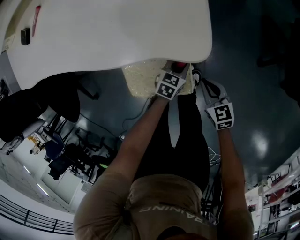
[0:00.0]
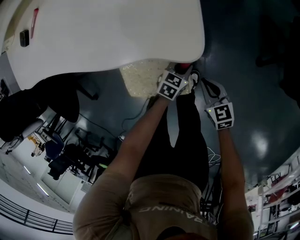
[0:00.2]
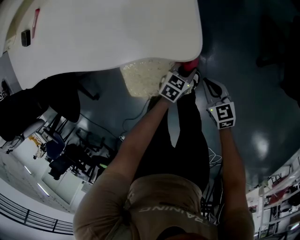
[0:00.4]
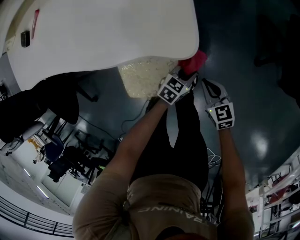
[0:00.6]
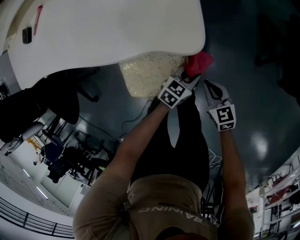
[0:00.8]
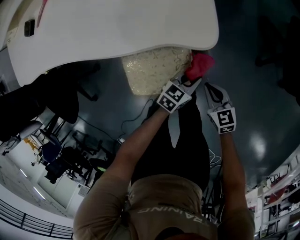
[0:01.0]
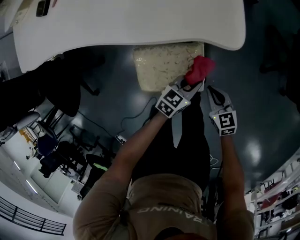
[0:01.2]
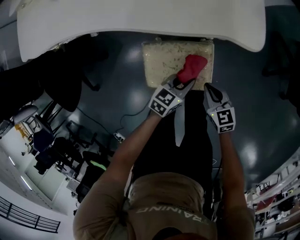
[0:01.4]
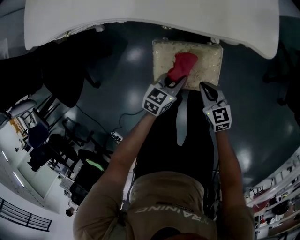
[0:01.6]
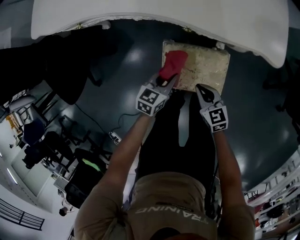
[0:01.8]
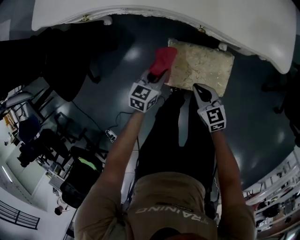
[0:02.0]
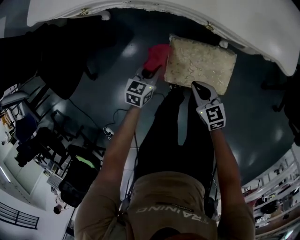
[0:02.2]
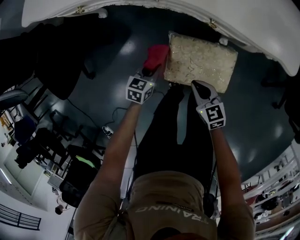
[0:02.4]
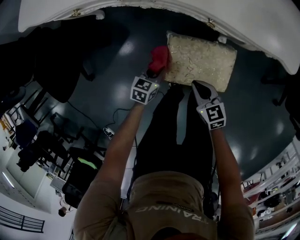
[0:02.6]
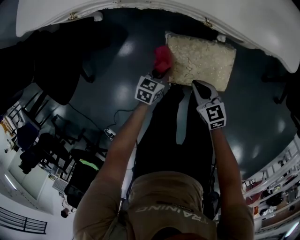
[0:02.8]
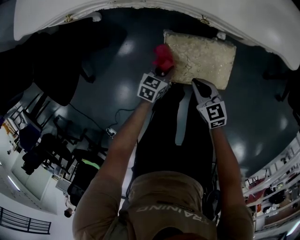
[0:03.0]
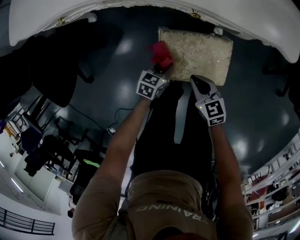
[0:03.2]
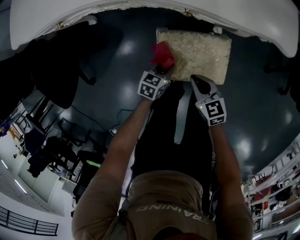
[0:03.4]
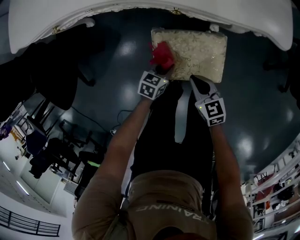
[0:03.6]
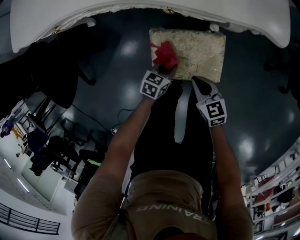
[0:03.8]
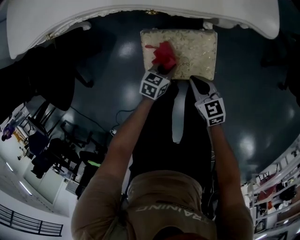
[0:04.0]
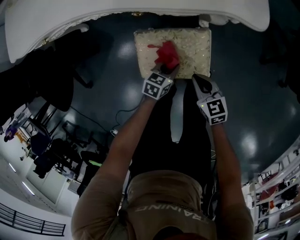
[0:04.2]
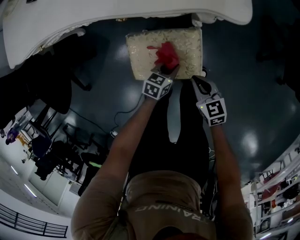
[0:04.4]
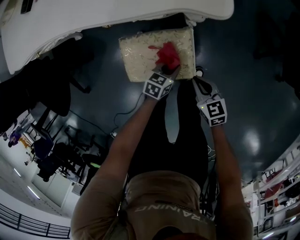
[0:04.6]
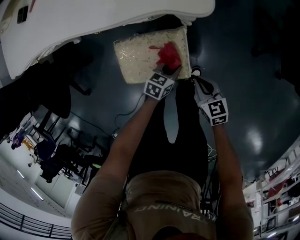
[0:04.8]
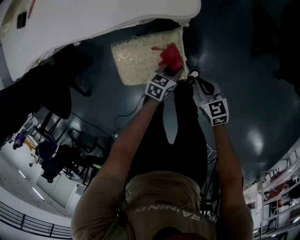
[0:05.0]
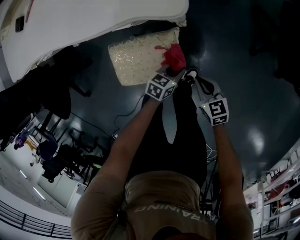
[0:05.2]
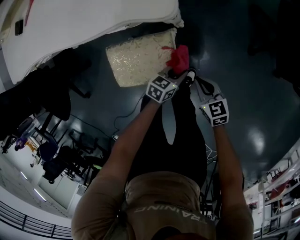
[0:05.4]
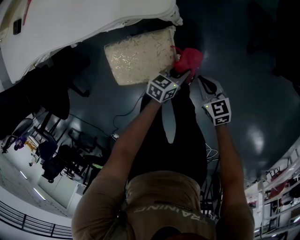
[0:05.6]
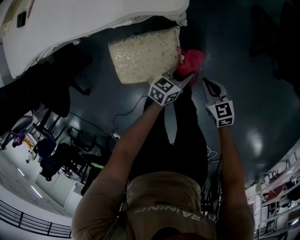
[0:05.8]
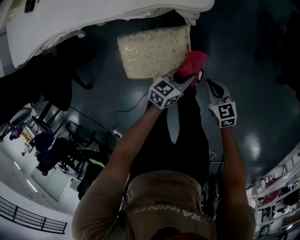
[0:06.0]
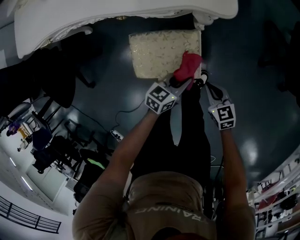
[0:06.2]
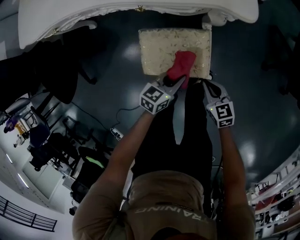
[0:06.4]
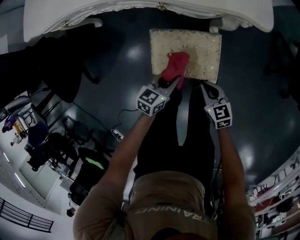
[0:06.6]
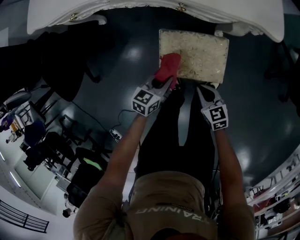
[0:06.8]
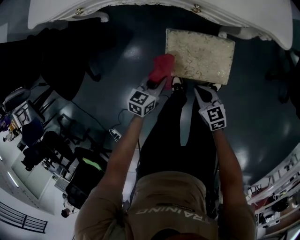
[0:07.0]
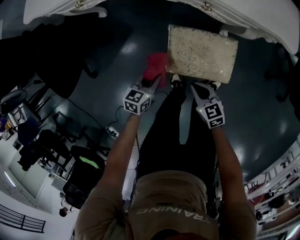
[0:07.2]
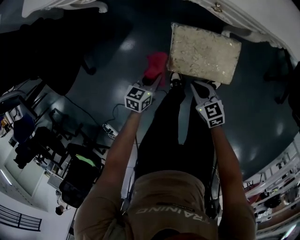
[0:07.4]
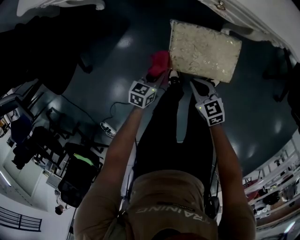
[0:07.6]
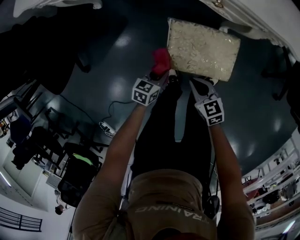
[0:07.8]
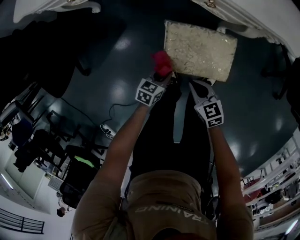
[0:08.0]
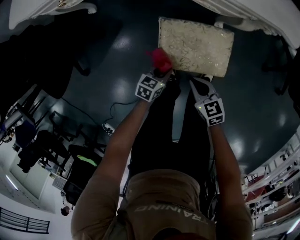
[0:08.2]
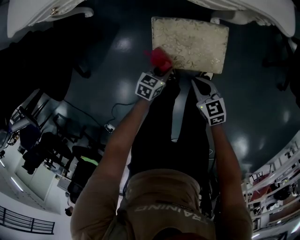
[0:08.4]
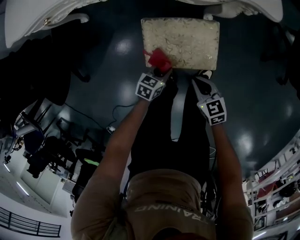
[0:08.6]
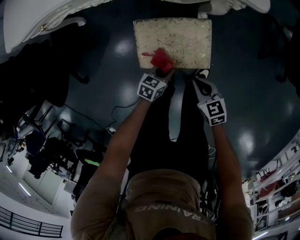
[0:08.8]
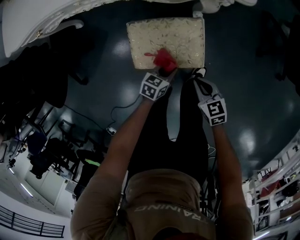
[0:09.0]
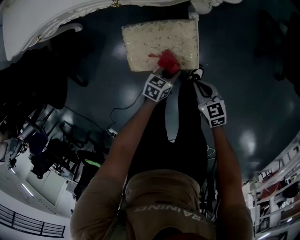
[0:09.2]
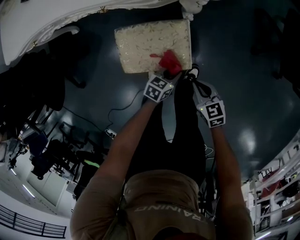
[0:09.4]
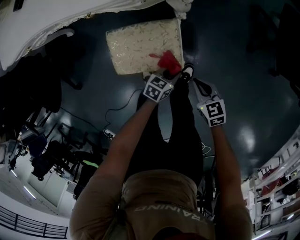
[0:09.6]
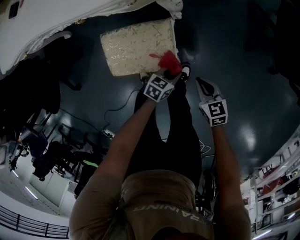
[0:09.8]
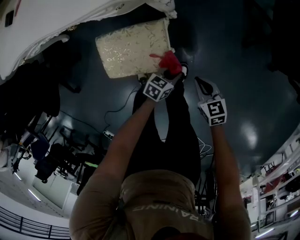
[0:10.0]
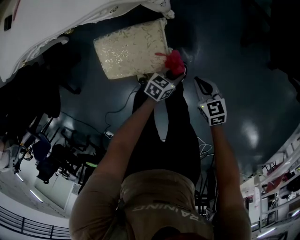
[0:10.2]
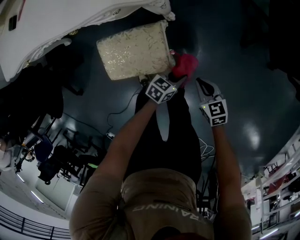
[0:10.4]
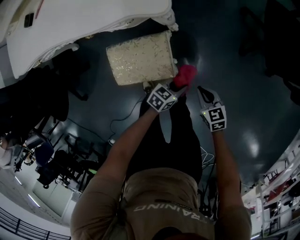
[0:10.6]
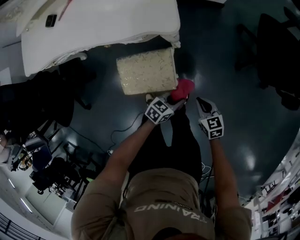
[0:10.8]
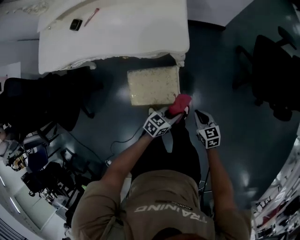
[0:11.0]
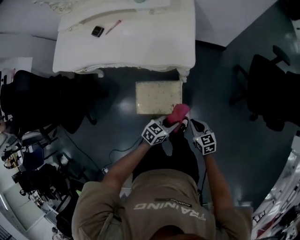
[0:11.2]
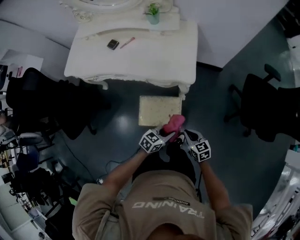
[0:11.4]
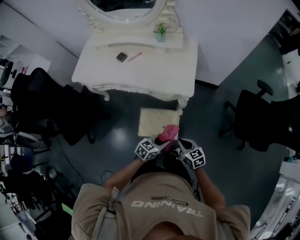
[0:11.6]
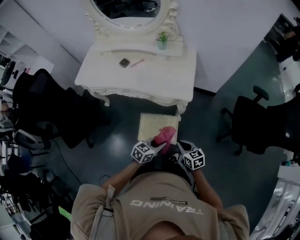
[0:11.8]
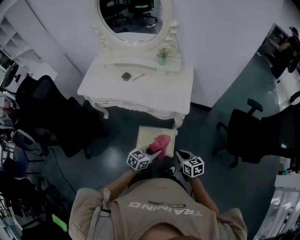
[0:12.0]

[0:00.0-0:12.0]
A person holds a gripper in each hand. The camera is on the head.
0:00.0 to 0:01.6: The right gripper shifts about 20 cm to the left and backward, while the left gripper is displaced to the left, upward and backward by roughly 25 cm.
0:01.6 to 0:03.0: The right gripper travels to the left by about 10 cm; the left gripper moves to the left and downward, roughly 15 cm.
0:03.0 to 0:04.4: Both grippers move to the right, some 20 cm.
0:04.4 to 0:06.0: The right gripper travels to the right by approximately 15 cm, while the left gripper travels to the right and upward by about 15 cm.
0:06.0 to 0:07.6: Both grippers travel together to the left, roughly 40 cm. The left gripper changes its angle by approximately 20 degrees.
0:07.6 to 0:09.0: The grippers both shift to the right by about 25 cm.
0:09.0 to 0:10.4: Both grippers travel together to the right, approximately 20 cm.
0:10.4 to 0:12.0: The grippers both shift upward by approximately 50 cm. The left gripper turns by approximately 30 degrees.

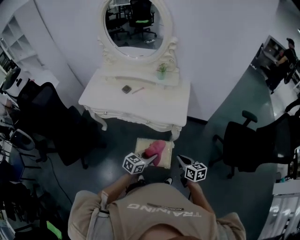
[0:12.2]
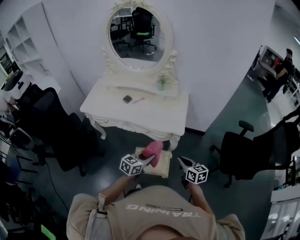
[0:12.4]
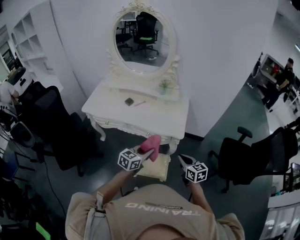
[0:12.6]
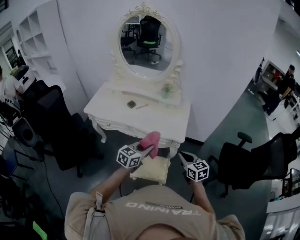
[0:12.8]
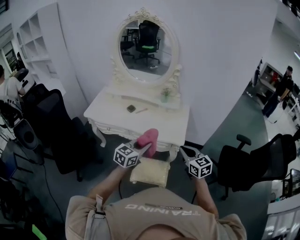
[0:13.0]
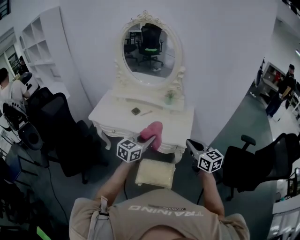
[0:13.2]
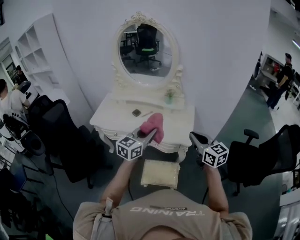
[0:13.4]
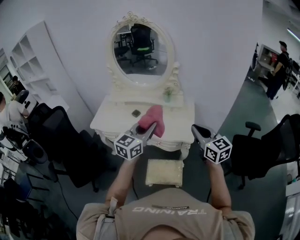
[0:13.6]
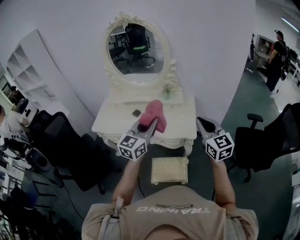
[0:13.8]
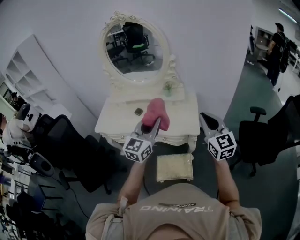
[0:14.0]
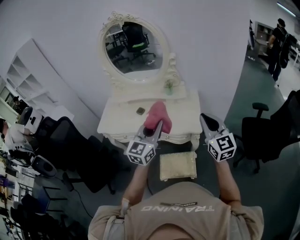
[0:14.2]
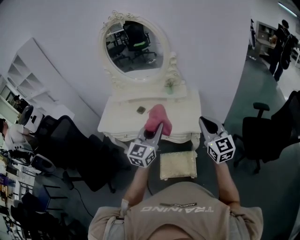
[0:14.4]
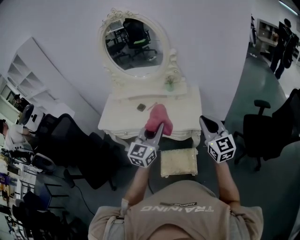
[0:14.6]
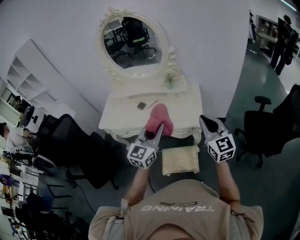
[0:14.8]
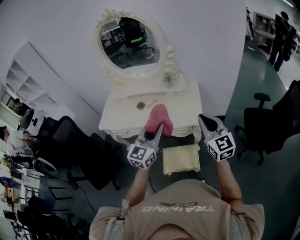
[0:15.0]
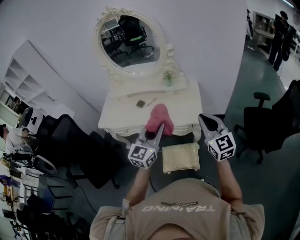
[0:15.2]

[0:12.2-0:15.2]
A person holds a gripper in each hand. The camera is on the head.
0:12.2 to 0:13.8: The two grippers go approximately 35 cm upward. The left gripper turns by roughly 40 degrees. The right gripper swivels approximately 40 degrees.
0:13.8 to 0:15.2: The left gripper is displaced downward by roughly 5 cm. Meanwhile the right gripper ends up roughly 5 cm from where it was.

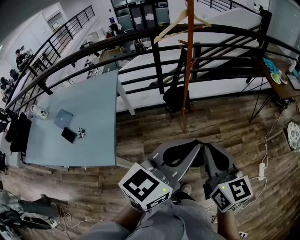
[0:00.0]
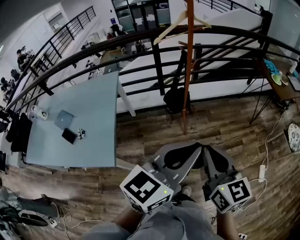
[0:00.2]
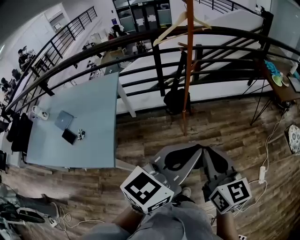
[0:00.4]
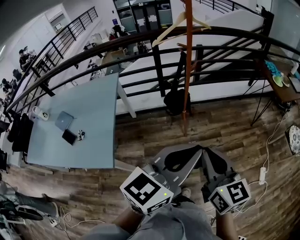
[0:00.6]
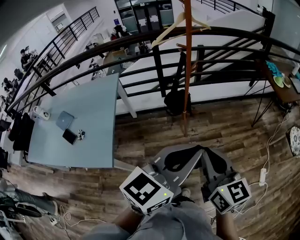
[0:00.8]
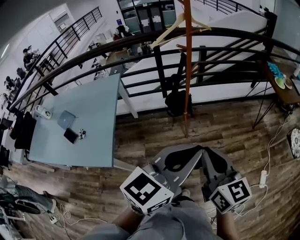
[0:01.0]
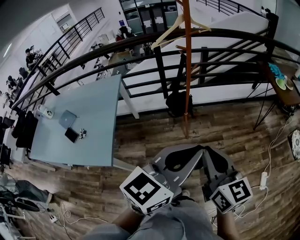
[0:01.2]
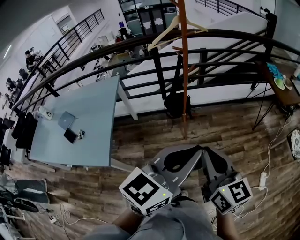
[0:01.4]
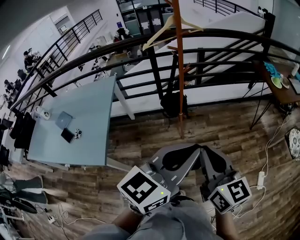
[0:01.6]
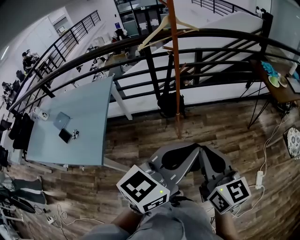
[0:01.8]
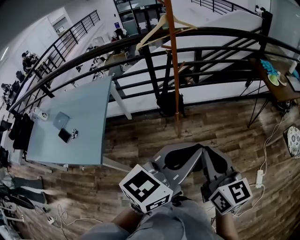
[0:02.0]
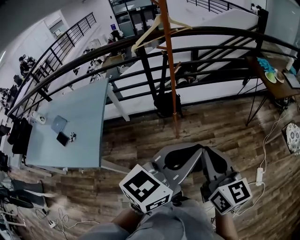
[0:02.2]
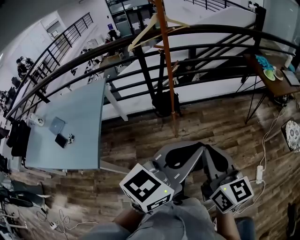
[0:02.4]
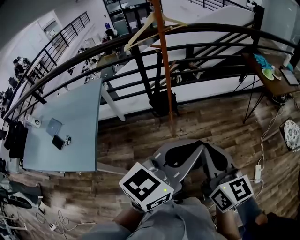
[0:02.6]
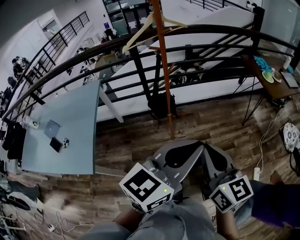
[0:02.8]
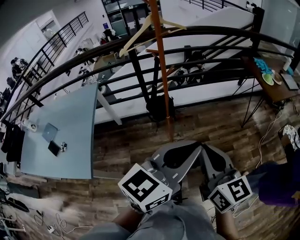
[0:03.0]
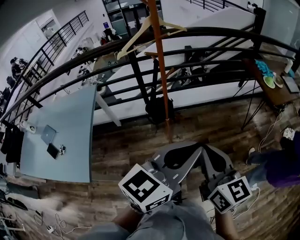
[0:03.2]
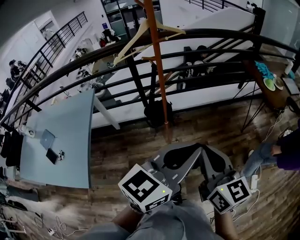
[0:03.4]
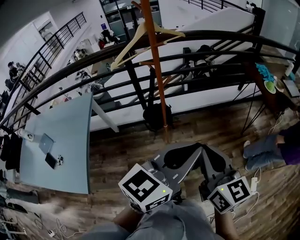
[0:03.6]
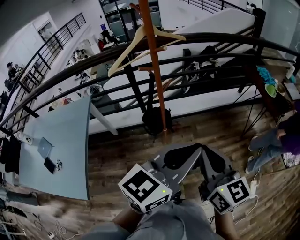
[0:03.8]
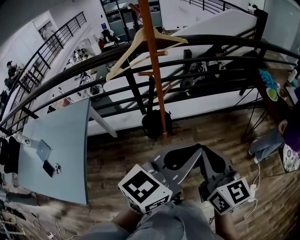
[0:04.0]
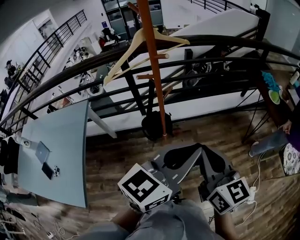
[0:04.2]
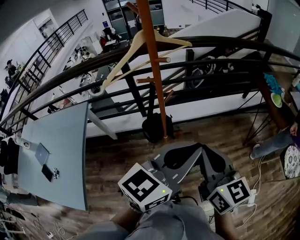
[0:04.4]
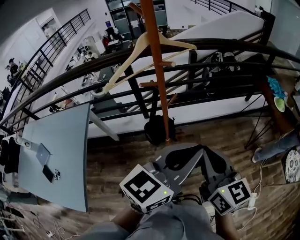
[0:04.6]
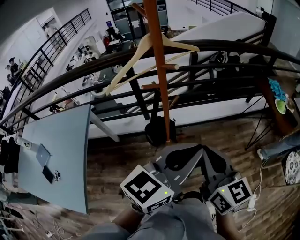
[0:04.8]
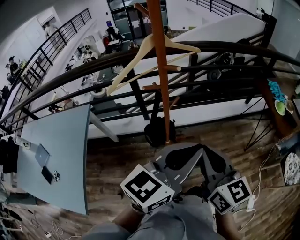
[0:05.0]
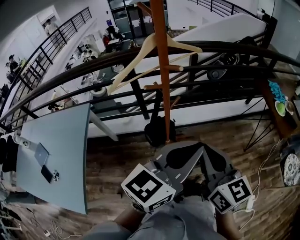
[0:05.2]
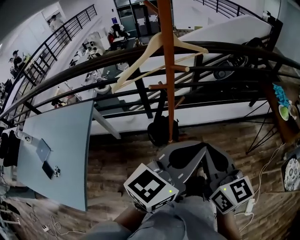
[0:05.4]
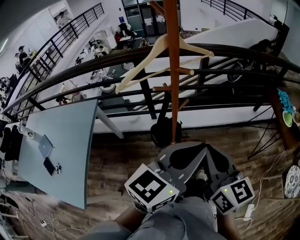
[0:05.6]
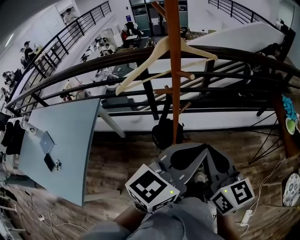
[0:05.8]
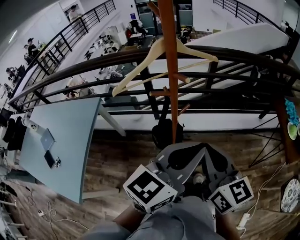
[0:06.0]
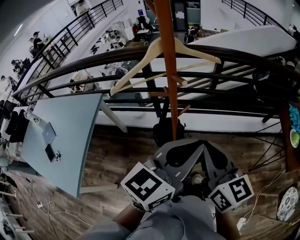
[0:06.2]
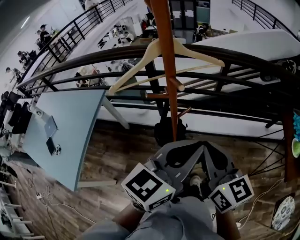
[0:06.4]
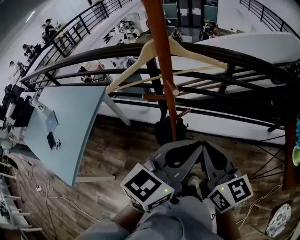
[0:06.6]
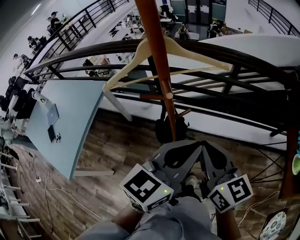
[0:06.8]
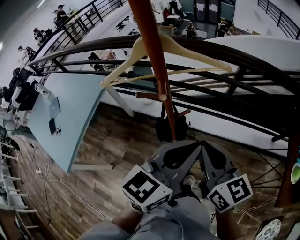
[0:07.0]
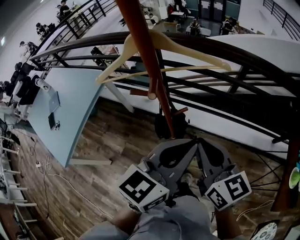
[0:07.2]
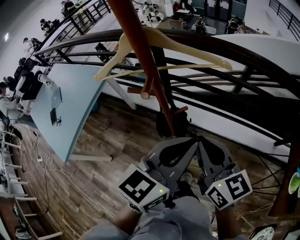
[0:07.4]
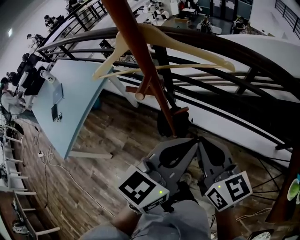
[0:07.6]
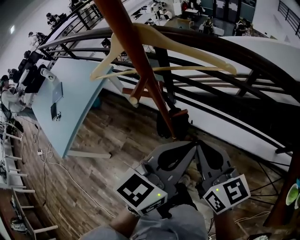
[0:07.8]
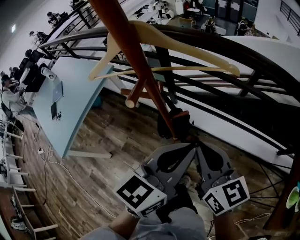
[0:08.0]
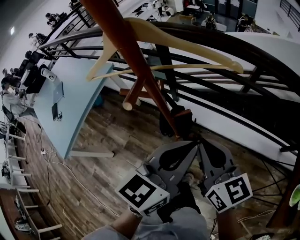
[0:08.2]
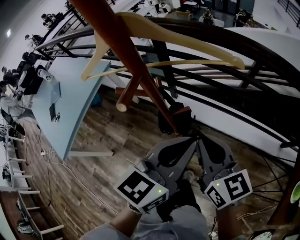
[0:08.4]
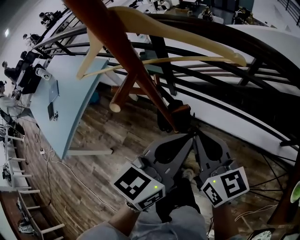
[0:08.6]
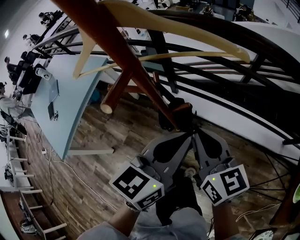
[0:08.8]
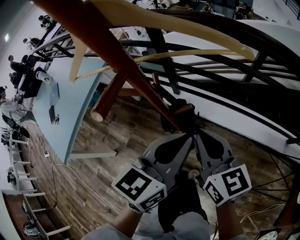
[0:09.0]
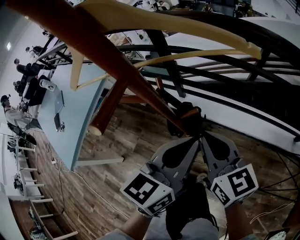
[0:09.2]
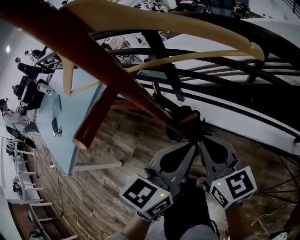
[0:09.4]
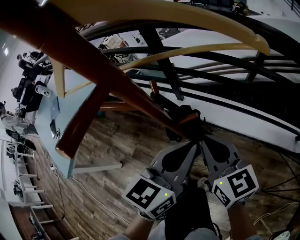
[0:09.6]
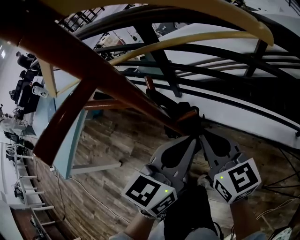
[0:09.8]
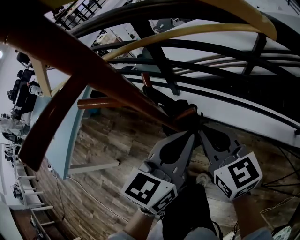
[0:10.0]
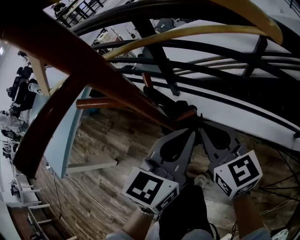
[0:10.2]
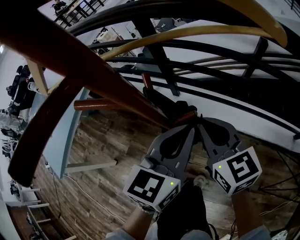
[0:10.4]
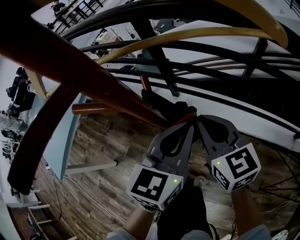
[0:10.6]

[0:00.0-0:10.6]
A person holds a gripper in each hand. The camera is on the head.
0:00.0 to 0:01.6: The grippers both shift to the right by approximately 10 cm.
0:01.6 to 0:03.0: The grippers both shift forward by some 10 cm.
0:03.0 to 0:04.6: Both grippers travel together forward, some 25 cm.
0:04.6 to 0:06.0: Both grippers move forward, some 10 cm.
0:06.0 to 0:07.6: The left gripper shifts by about 15 cm, and turns by approximately 30 degrees. The right gripper shifts by roughly 15 cm, and rotates about 30 degrees.
0:07.6 to 0:09.0: The two grippers go roughly 10 cm downward and forward.
0:09.0 to 0:10.6: Both grippers travel together downward and forward, roughly 10 cm.
